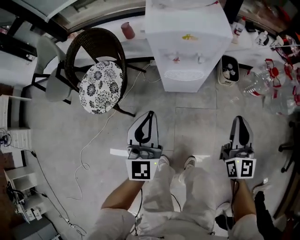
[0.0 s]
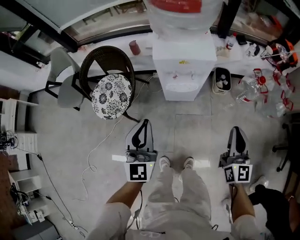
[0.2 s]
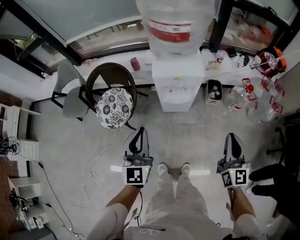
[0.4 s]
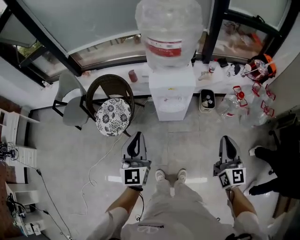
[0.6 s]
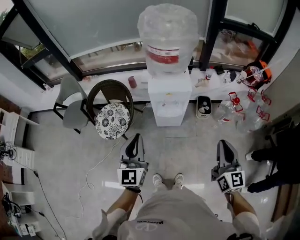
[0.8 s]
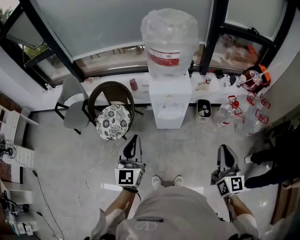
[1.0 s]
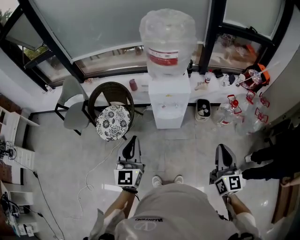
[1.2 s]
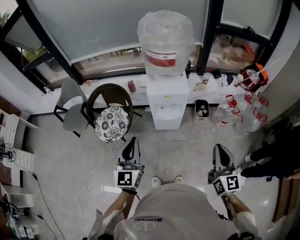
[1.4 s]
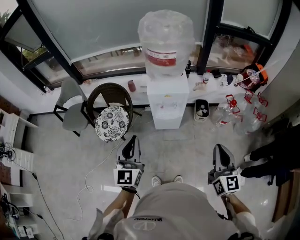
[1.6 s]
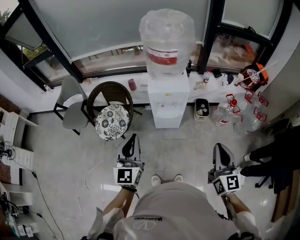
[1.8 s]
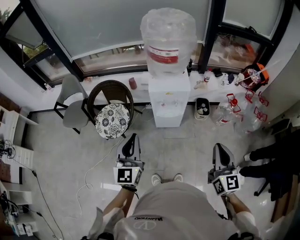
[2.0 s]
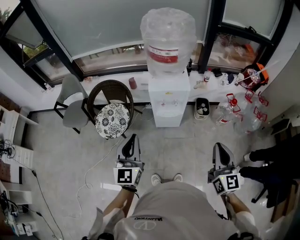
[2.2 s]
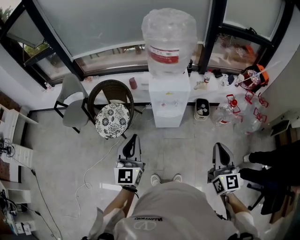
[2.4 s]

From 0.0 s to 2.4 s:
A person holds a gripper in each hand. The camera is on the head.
From 0.0 s to 1.2 s: The left gripper goes some 30 cm upward; the right gripper travels upward and backward by about 35 cm.
From 1.2 s to 2.4 s: There are only small adjustments of the grippers.

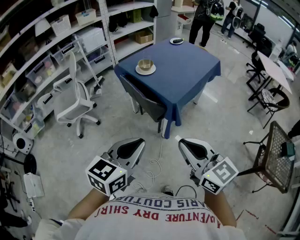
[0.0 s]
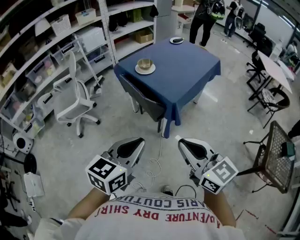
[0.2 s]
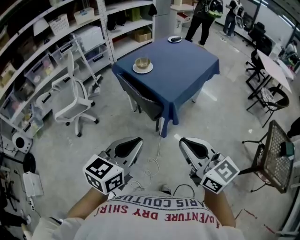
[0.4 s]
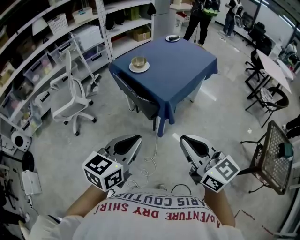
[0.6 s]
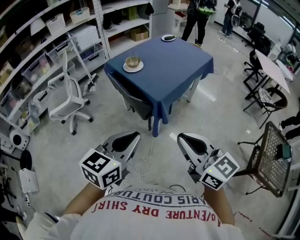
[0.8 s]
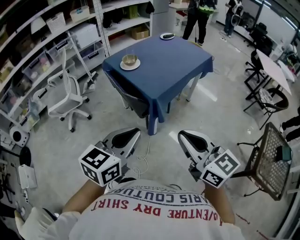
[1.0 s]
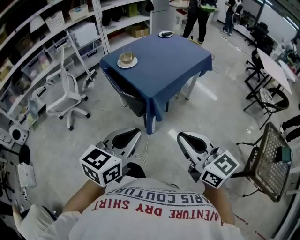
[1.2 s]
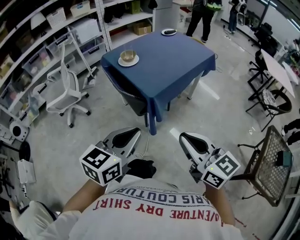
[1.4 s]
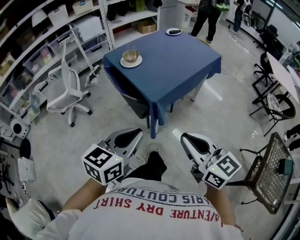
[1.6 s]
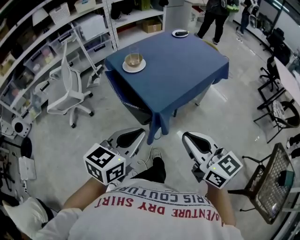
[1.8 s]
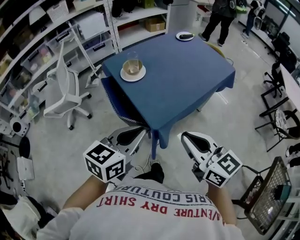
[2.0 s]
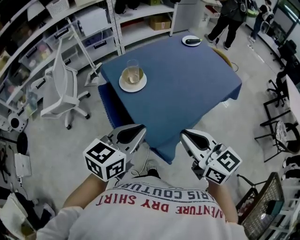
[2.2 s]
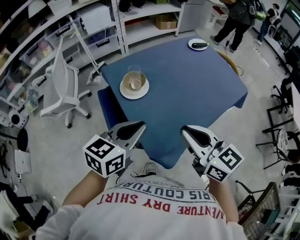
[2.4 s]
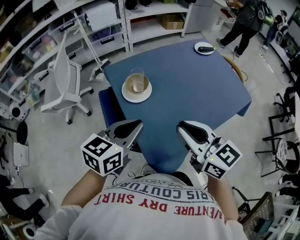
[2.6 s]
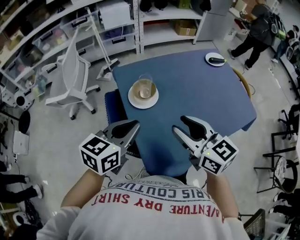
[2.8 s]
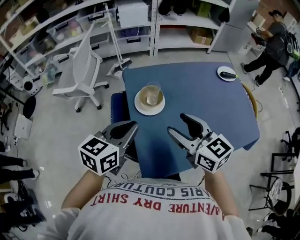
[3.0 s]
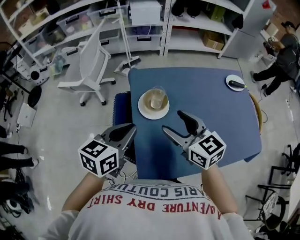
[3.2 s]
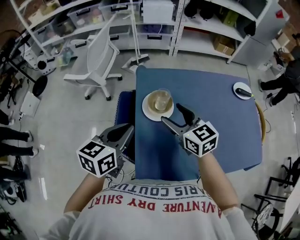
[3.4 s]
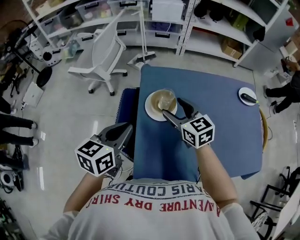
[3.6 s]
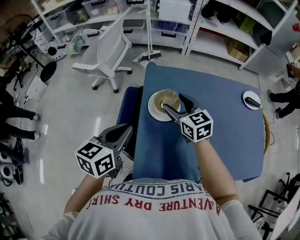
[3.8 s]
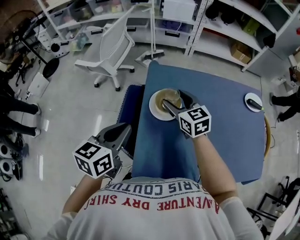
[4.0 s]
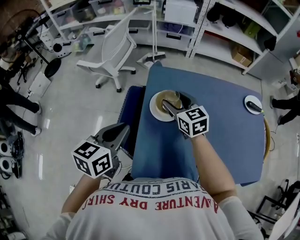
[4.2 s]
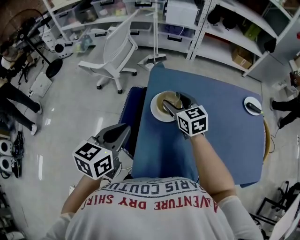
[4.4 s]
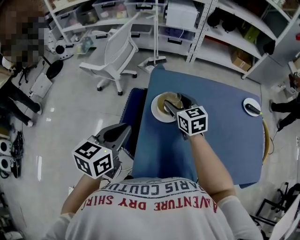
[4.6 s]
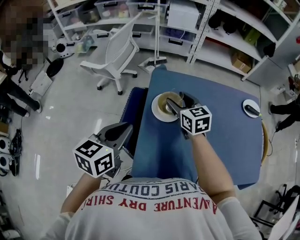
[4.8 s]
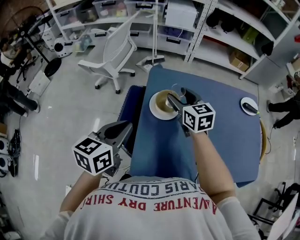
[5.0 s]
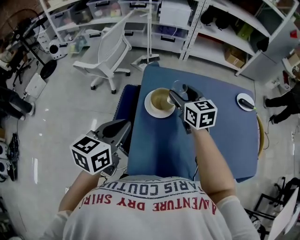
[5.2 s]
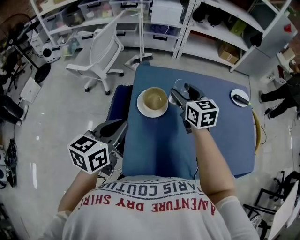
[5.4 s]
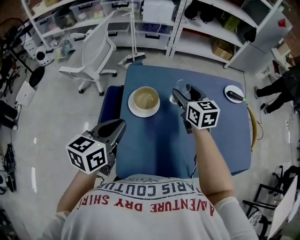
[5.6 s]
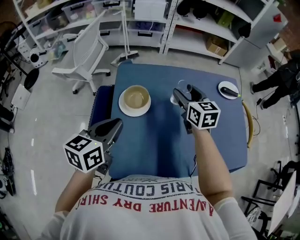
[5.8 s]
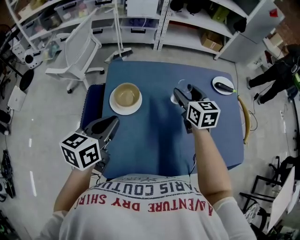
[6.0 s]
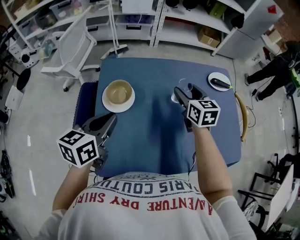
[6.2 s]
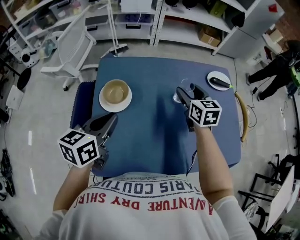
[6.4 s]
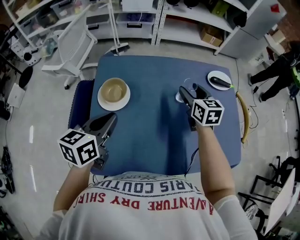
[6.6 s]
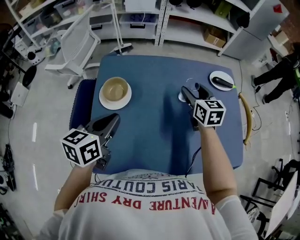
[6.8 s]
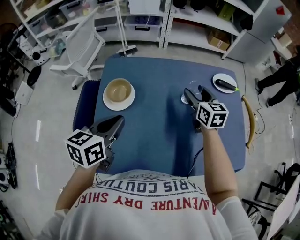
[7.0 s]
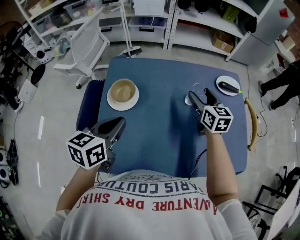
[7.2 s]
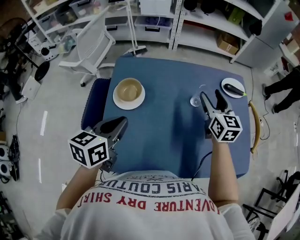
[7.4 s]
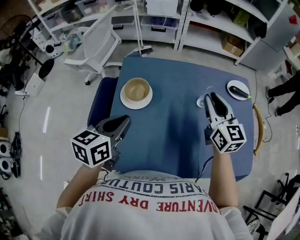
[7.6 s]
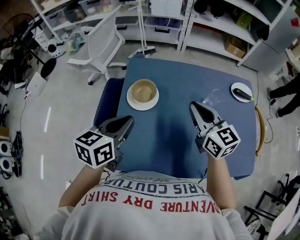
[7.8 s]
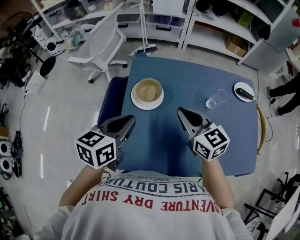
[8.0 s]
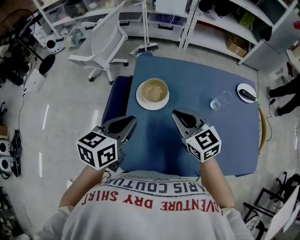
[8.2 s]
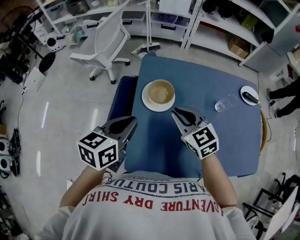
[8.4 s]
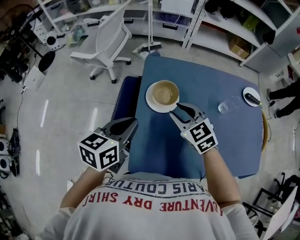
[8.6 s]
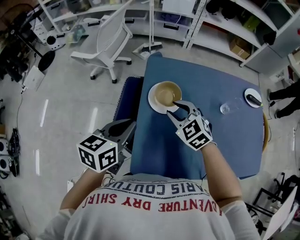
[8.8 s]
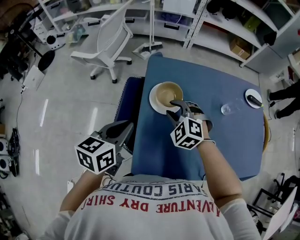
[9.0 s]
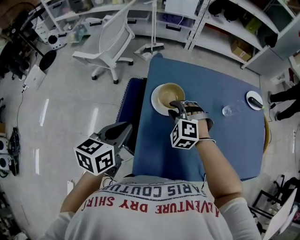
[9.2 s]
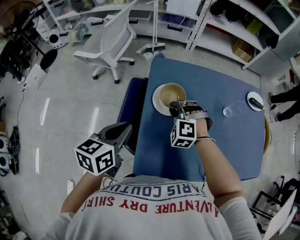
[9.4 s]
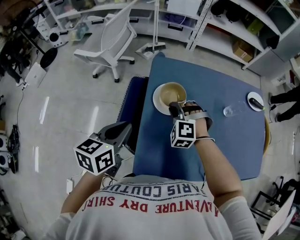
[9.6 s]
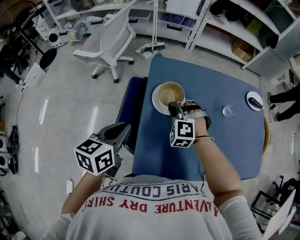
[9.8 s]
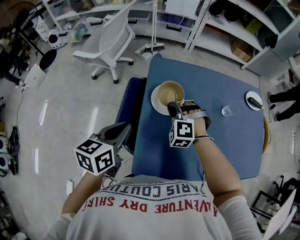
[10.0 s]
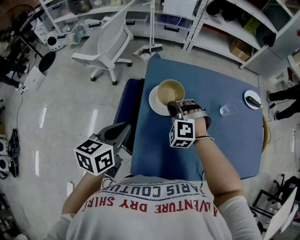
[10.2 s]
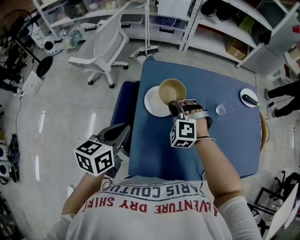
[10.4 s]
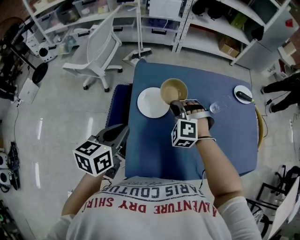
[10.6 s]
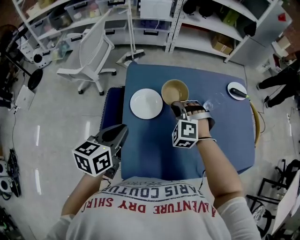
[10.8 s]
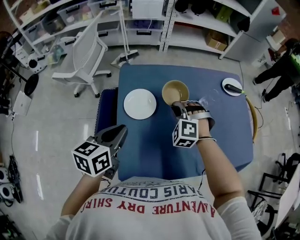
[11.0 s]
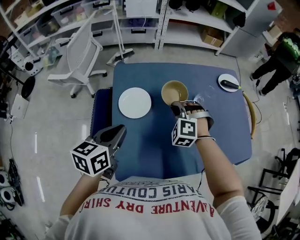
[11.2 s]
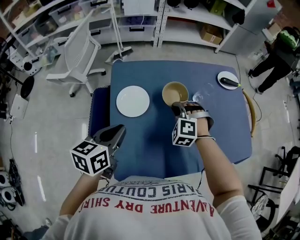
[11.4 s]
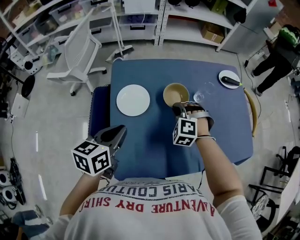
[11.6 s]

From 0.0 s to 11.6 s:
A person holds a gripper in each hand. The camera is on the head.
From 0.0 s to 1.4 s: Both grippers move to the right, some 15 cm.
From 1.4 s to 2.8 s: The two grippers travel together, forward, roughly 50 cm. The right gripper changes its angle by approximately 30 degrees, and opens up, while the left gripper changes its angle by some 20 degrees.
From 2.8 s to 4.4 s: The right gripper shifts by roughly 25 cm, and turns by some 20 degrees, while the left gripper moves about 5 cm, and changes its angle by about 40 degrees.
From 4.4 s to 5.8 s: The left gripper heads to the right, covering about 10 cm, while the right gripper moves to the right, roughly 20 cm, and rotates about 20 degrees.
From 5.8 s to 7.2 s: The right gripper goes some 15 cm to the right. Meanwhile the left gripper shifts roughly 10 cm to the right.
From 7.2 s to 8.8 s: The right gripper heads to the left, covering some 30 cm, twists about 40 degrees counterclockwise, seen from behind, and closes. Meanwhile the left gripper moves to the left, approximately 15 cm.
From 8.8 s to 10.2 s: The right gripper swivels approximately 40 degrees, and closes up.
From 10.2 s to 11.6 s: The left gripper travels to the right by about 10 cm. The right gripper shifts roughly 15 cm to the right.

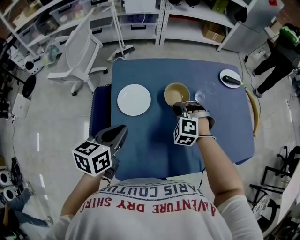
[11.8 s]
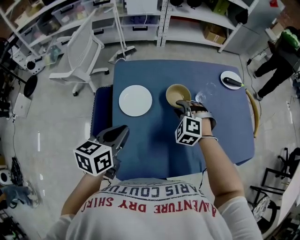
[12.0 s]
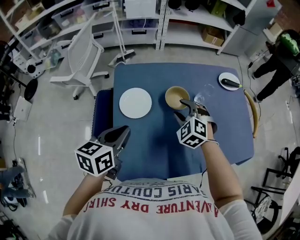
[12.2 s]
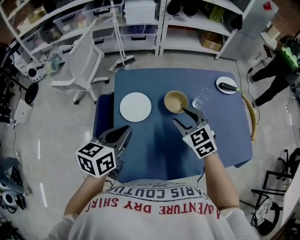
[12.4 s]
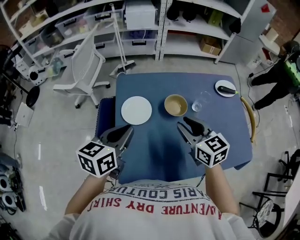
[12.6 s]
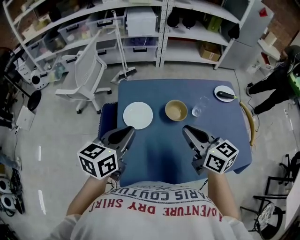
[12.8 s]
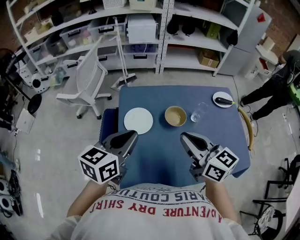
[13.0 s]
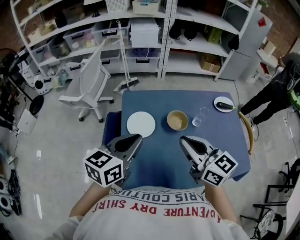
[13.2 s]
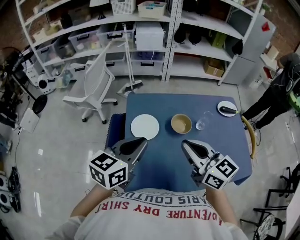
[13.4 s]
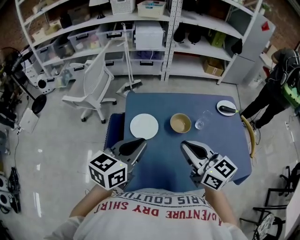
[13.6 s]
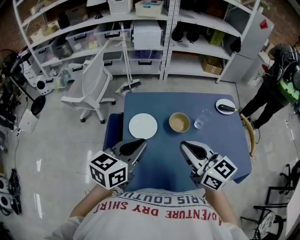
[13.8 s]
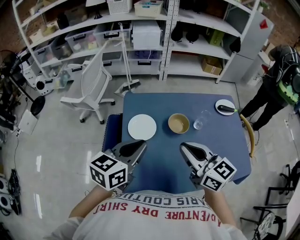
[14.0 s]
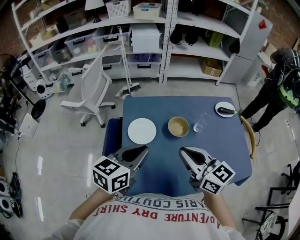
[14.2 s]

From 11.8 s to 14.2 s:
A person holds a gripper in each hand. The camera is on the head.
From 11.8 s to 13.0 s: The right gripper is displaced upward and backward by roughly 25 cm, angles its fingers upward, by roughly 40 degrees, and opens and closes again. The left gripper moves upward, approximately 10 cm.
From 13.0 s to 14.2 s: The grippers move only a little.

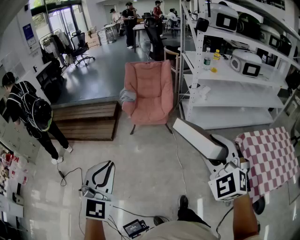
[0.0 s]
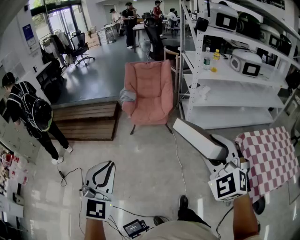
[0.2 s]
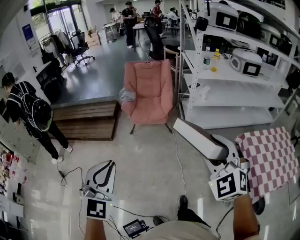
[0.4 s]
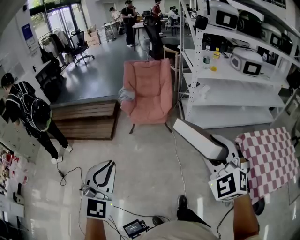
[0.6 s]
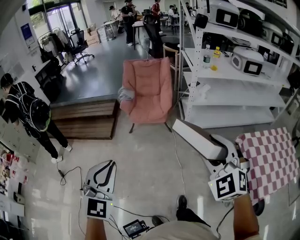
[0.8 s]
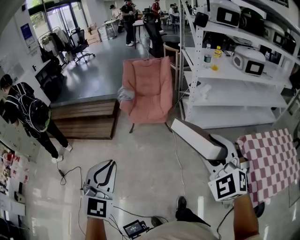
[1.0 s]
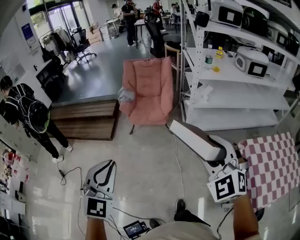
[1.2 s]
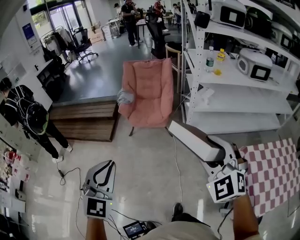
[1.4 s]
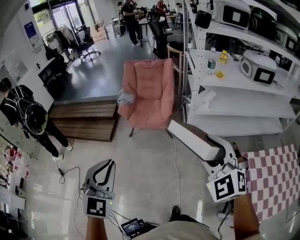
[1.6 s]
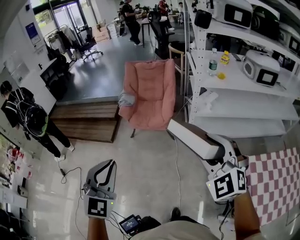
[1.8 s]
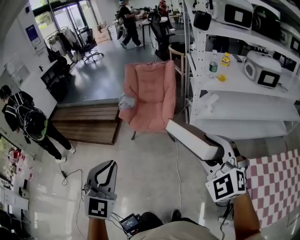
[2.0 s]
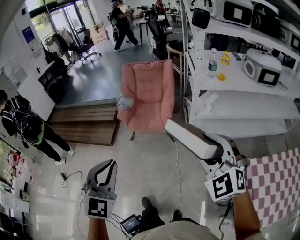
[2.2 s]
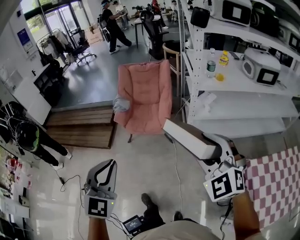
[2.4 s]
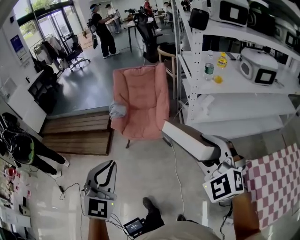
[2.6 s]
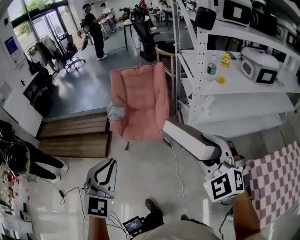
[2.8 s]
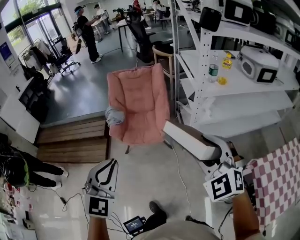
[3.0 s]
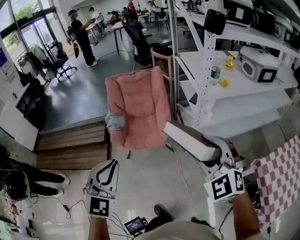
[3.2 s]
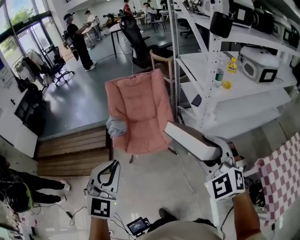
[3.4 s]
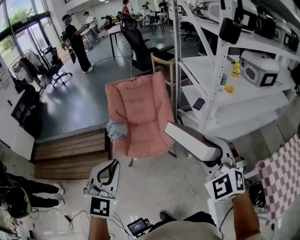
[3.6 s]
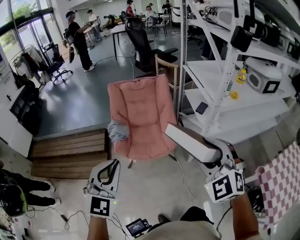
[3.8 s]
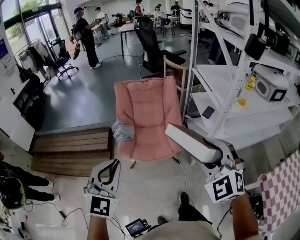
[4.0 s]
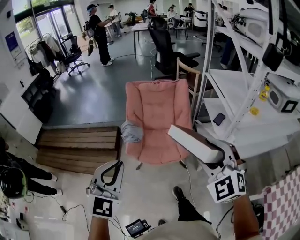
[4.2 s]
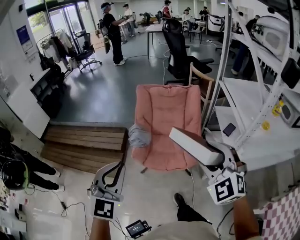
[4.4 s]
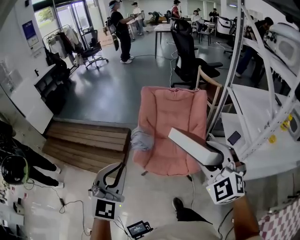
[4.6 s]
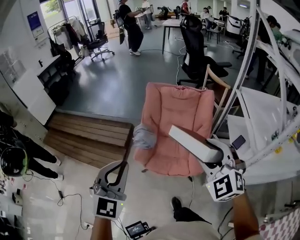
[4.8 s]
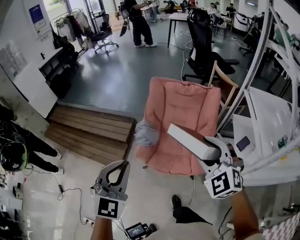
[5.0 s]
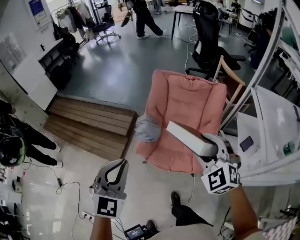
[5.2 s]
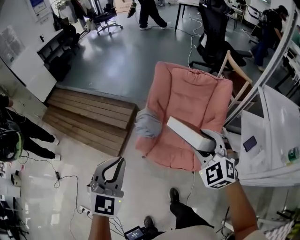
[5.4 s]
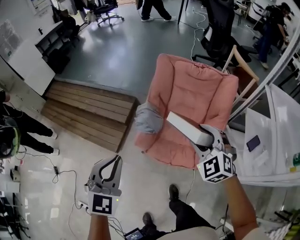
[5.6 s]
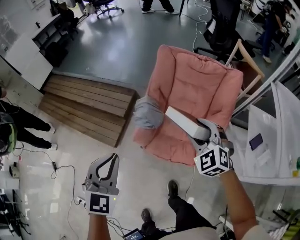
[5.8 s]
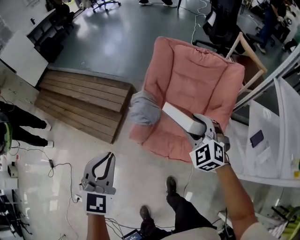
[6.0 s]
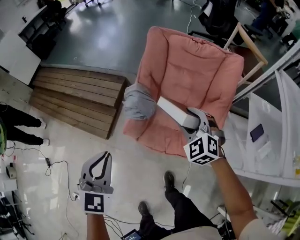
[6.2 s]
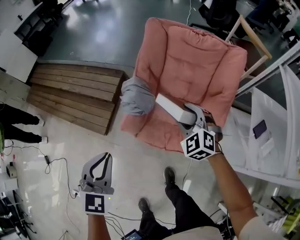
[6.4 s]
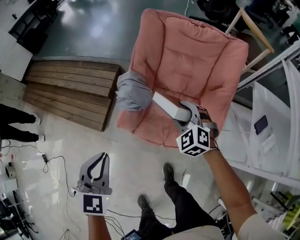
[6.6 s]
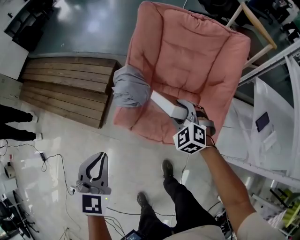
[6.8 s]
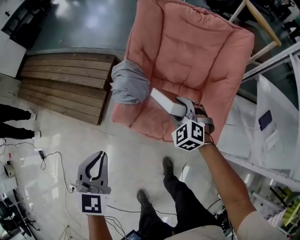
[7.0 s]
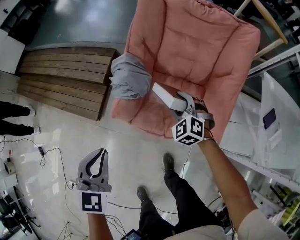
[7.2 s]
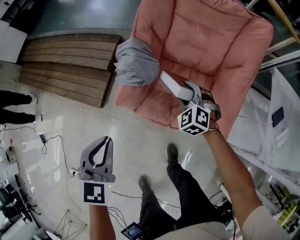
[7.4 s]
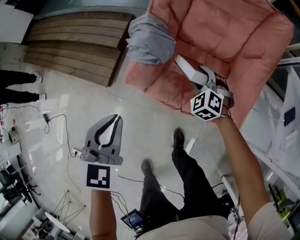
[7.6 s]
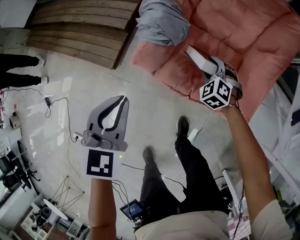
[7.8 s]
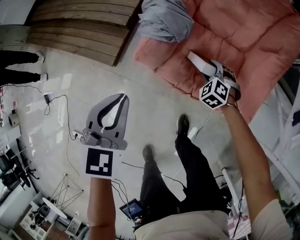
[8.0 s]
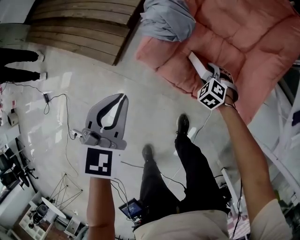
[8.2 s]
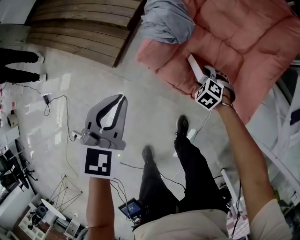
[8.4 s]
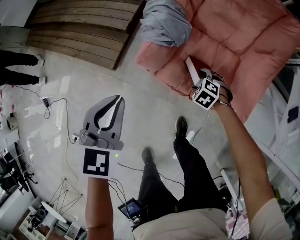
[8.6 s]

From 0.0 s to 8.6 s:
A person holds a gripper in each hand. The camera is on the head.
From 0.0 s to 1.4 s: Both grippers move forward and to the right, approximately 15 cm.
From 1.4 s to 2.8 s: Both grippers travel together forward, some 25 cm.
From 2.8 s to 4.4 s: The grippers both shift forward and to the left by about 35 cm.
From 4.4 s to 5.8 s: The left gripper heads downward and forward, covering roughly 30 cm, and changes its angle by some 30 degrees; the right gripper travels forward and downward by about 40 cm.
From 5.8 s to 7.2 s: The grippers both shift downward by roughly 25 cm. The left gripper turns by approximately 20 degrees.
From 7.2 s to 8.6 s: The left gripper shifts by approximately 5 cm, while the right gripper moves downward, about 20 cm, and angles its fingers downward, by approximately 30 degrees.
